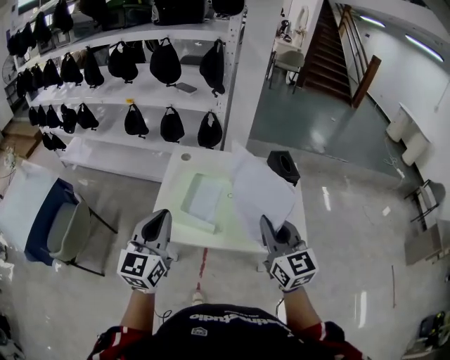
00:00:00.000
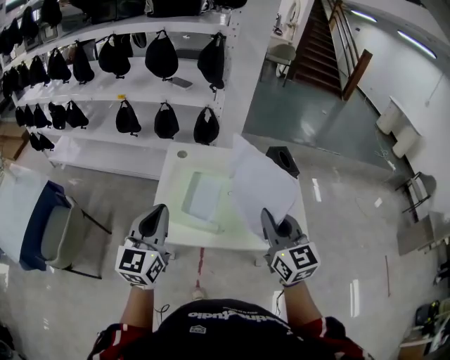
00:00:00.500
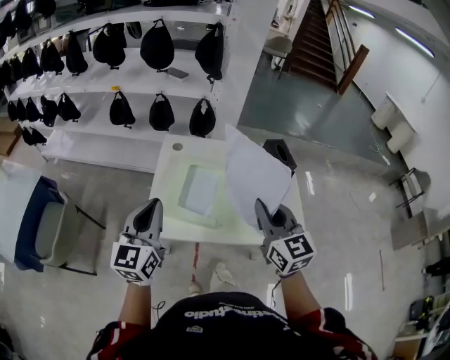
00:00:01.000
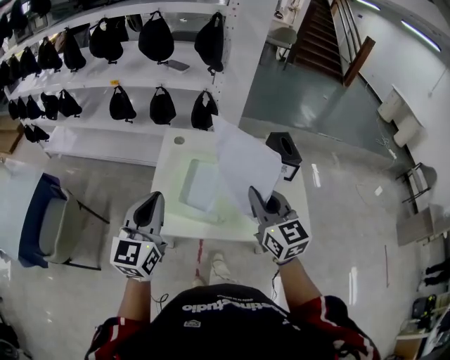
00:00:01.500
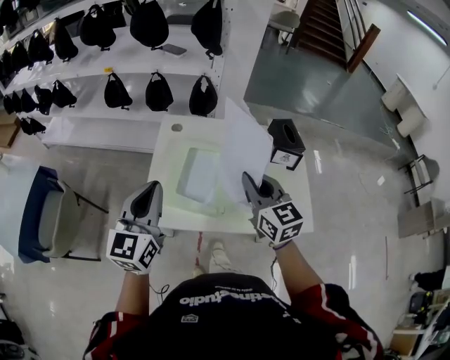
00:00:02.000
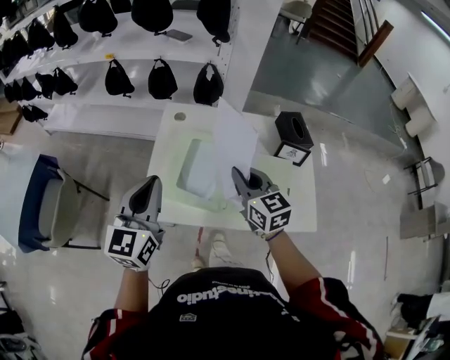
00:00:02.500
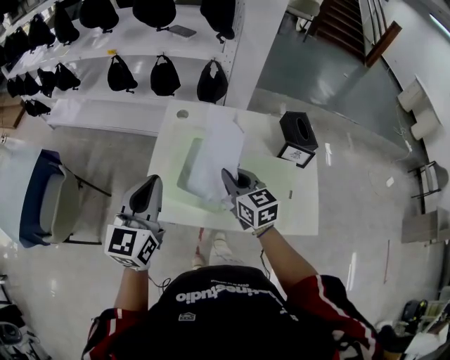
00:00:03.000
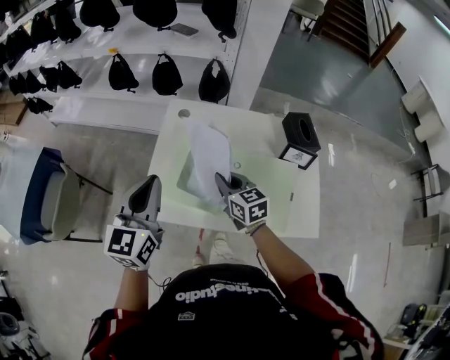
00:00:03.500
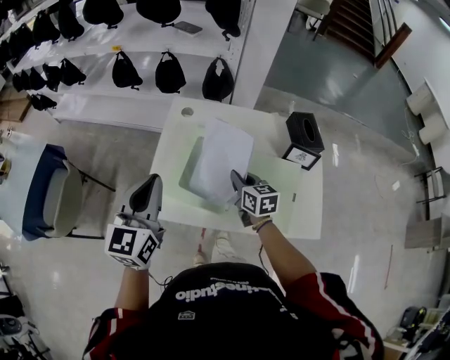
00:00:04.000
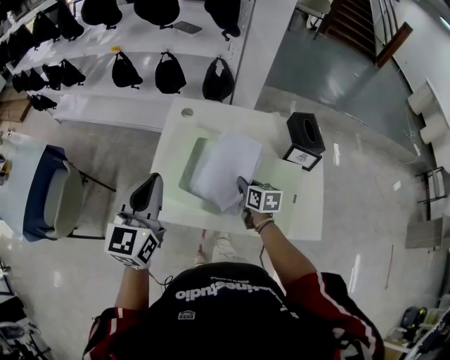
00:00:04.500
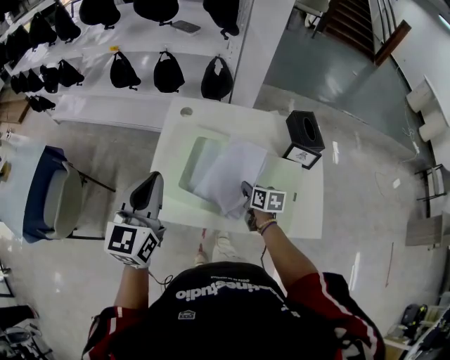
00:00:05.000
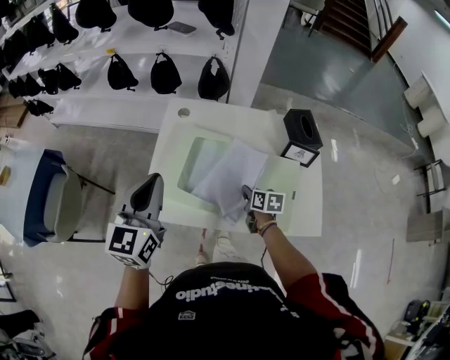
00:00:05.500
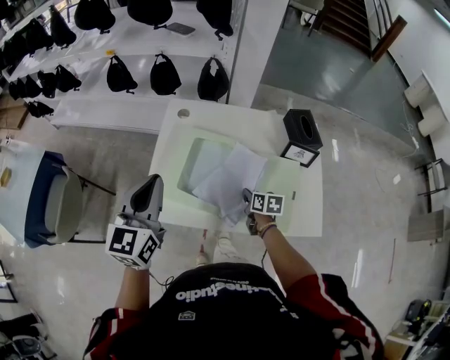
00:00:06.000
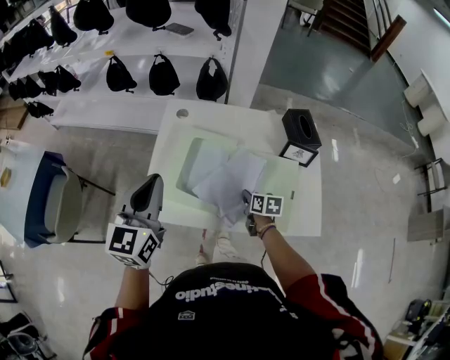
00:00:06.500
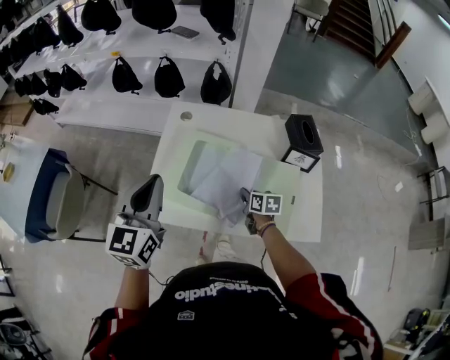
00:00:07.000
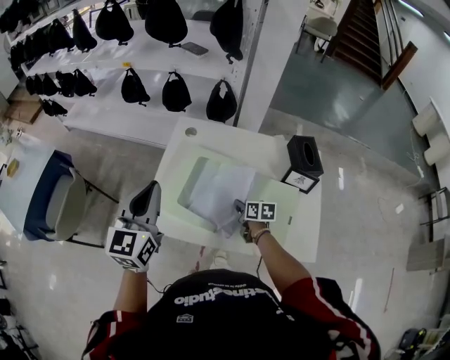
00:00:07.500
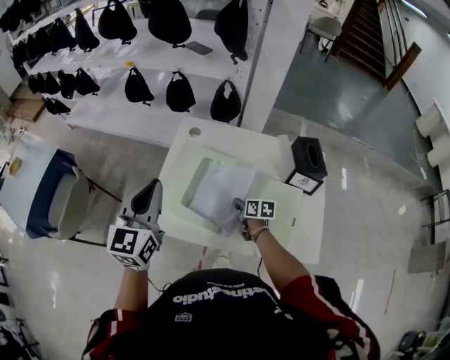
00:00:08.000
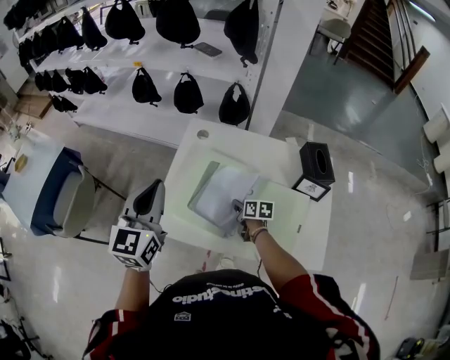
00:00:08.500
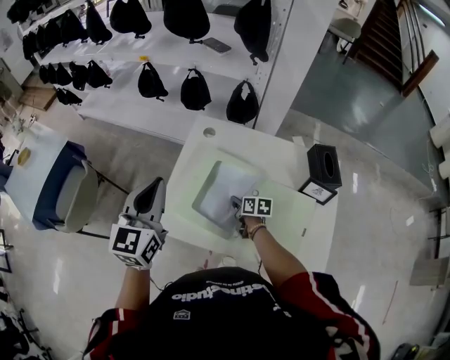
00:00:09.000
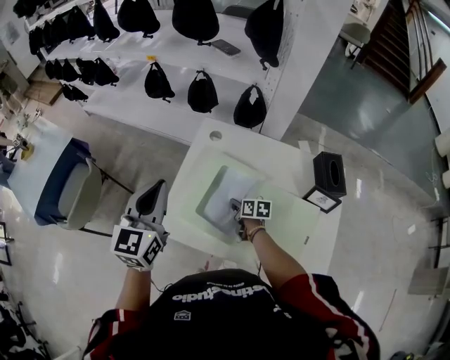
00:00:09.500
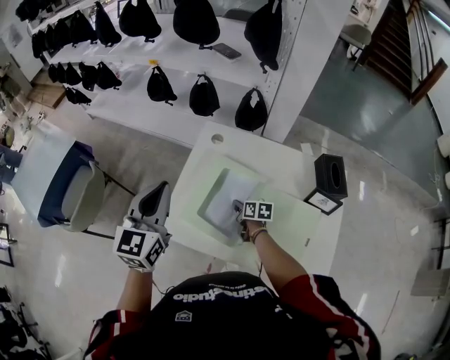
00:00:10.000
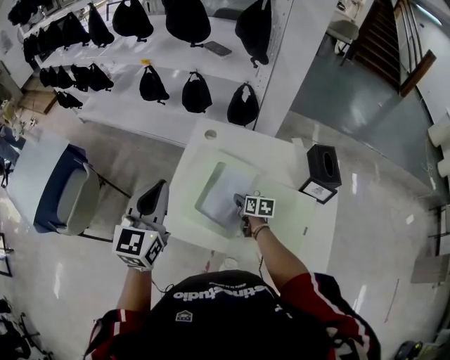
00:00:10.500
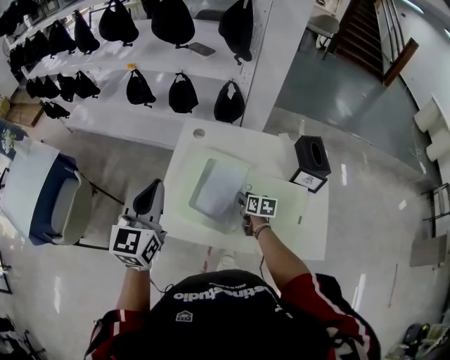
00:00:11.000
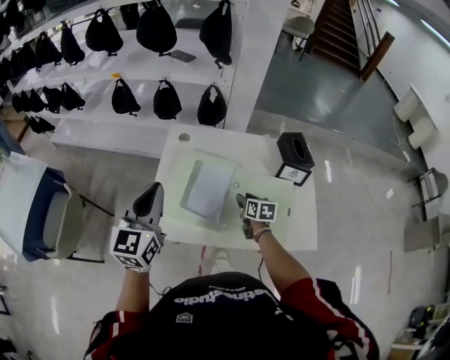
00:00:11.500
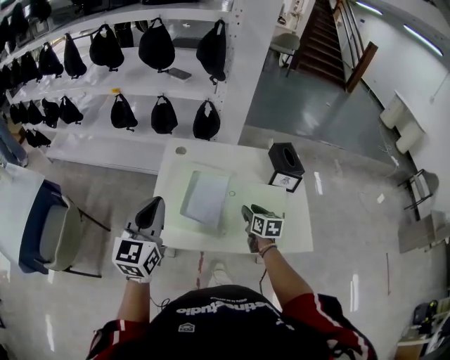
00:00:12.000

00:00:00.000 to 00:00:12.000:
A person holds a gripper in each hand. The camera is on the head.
00:00:00.000 to 00:00:02.000: The right gripper travels forward, downward and to the left by approximately 15 cm, while the left gripper shifts some 10 cm forward.
00:00:02.000 to 00:00:04.000: The right gripper goes about 20 cm downward and forward, and swivels about 30 degrees.
00:00:04.000 to 00:00:06.000: The right gripper is displaced downward and to the right by approximately 15 cm, and swivels some 30 degrees.
00:00:06.000 to 00:00:08.000: The right gripper heads forward, covering about 5 cm.
00:00:08.000 to 00:00:10.000: The right gripper moves forward and to the left, some 10 cm.
00:00:10.000 to 00:00:12.000: The left gripper changes place by approximately 10 cm; the right gripper moves some 20 cm, swivels some 30 degrees, and opens.

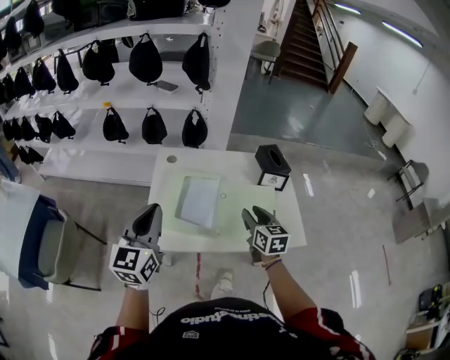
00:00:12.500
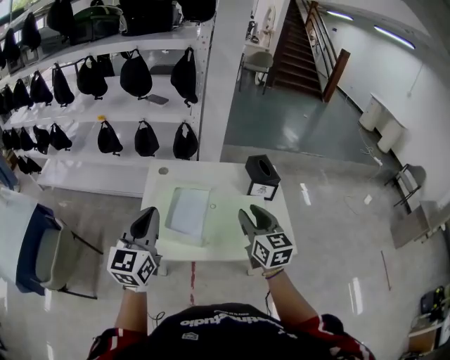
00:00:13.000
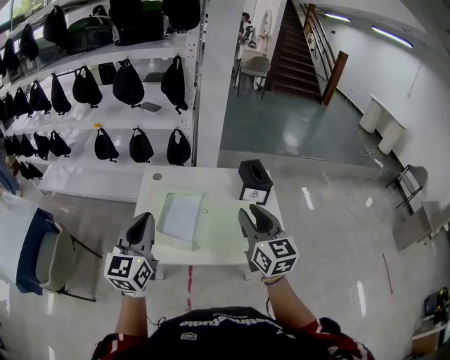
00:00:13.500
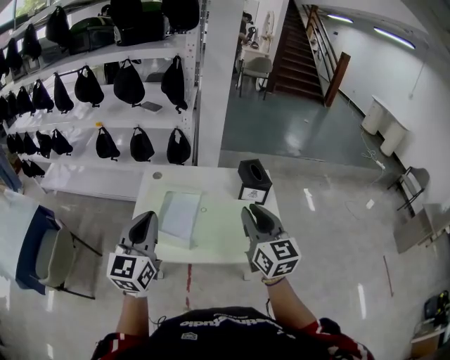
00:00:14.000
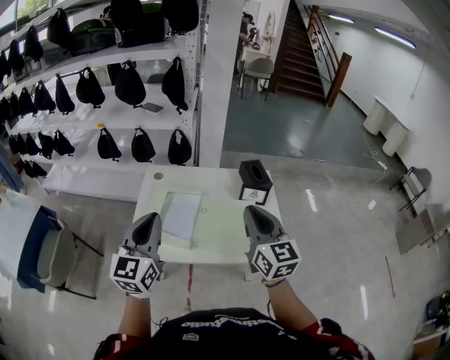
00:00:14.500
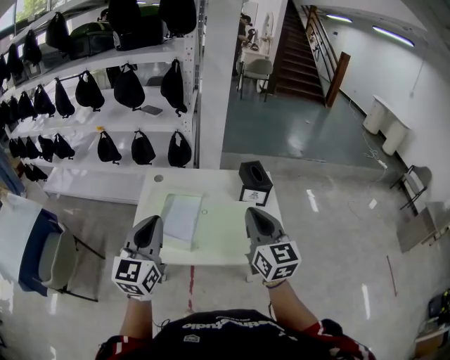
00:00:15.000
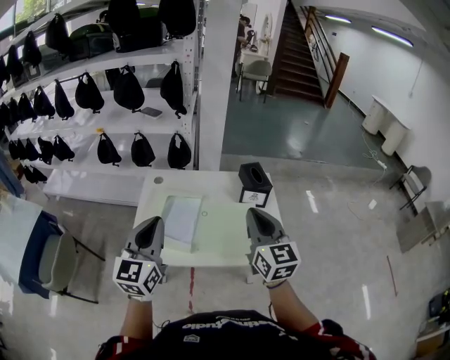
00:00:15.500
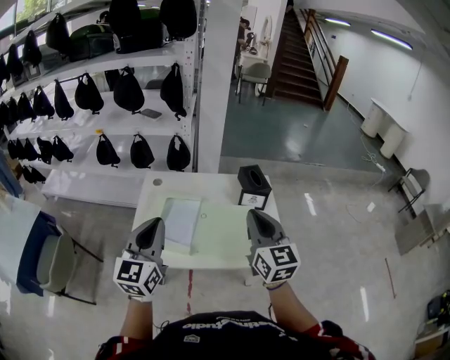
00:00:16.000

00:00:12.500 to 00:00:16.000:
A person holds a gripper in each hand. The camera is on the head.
00:00:12.500 to 00:00:14.500: The right gripper moves upward, approximately 20 cm, turns by roughly 20 degrees, and closes. Meanwhile the left gripper is displaced to the right and upward by roughly 10 cm.
00:00:14.500 to 00:00:16.000: Both grippers stay about where they are.

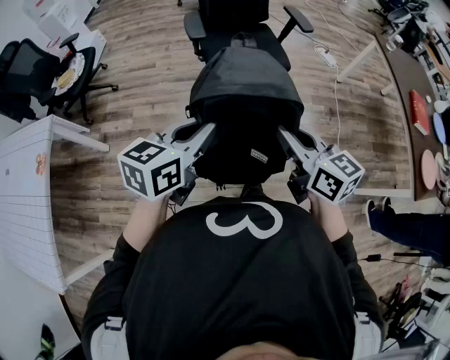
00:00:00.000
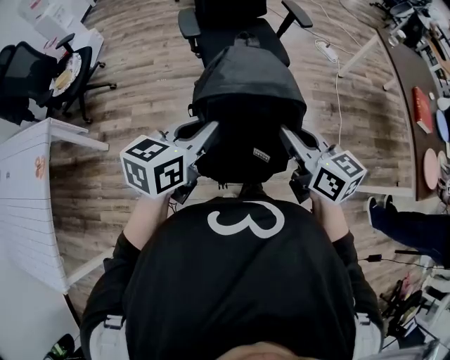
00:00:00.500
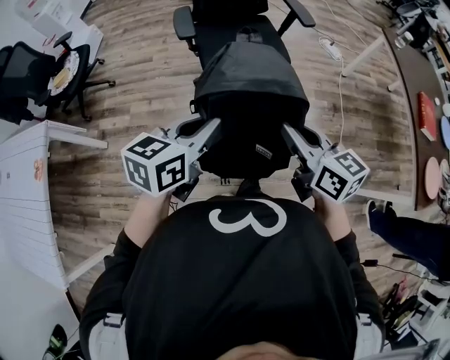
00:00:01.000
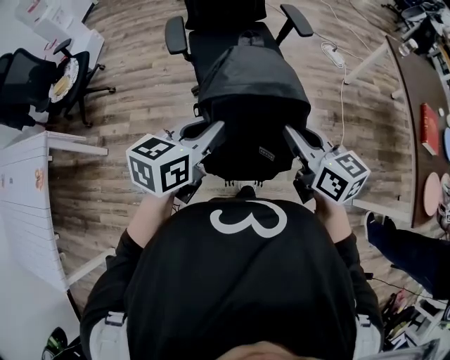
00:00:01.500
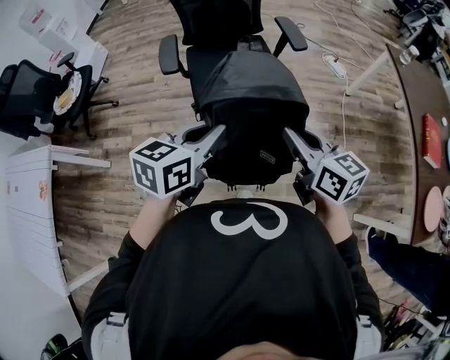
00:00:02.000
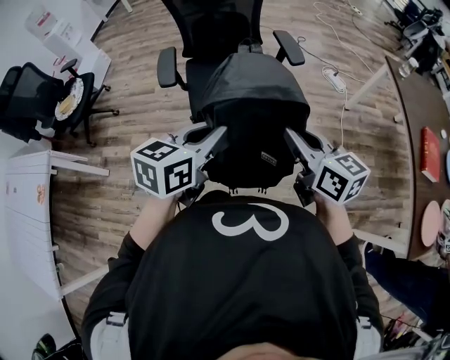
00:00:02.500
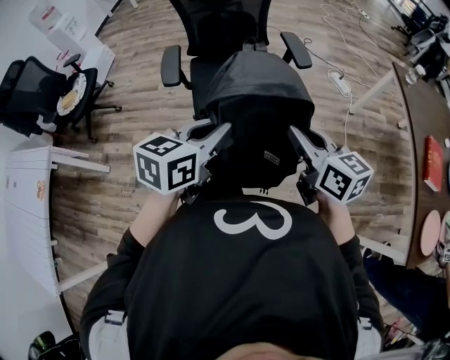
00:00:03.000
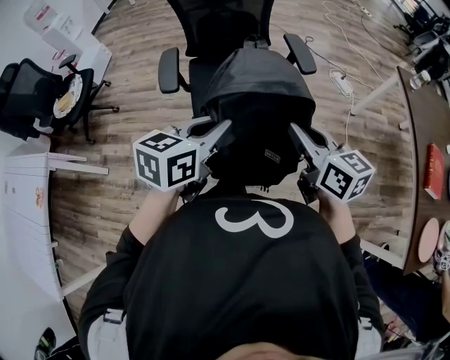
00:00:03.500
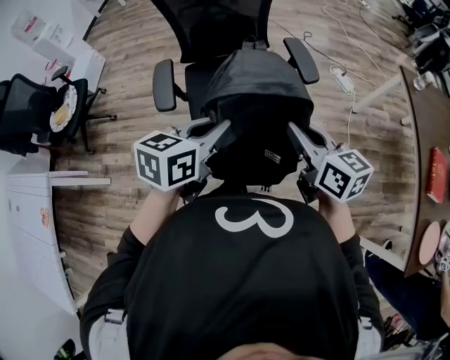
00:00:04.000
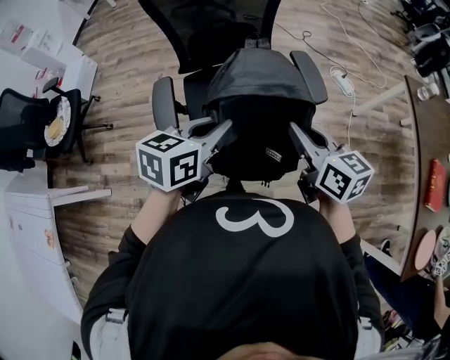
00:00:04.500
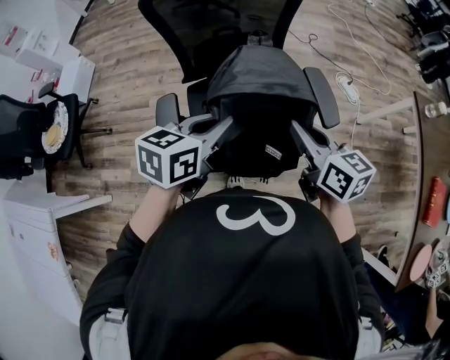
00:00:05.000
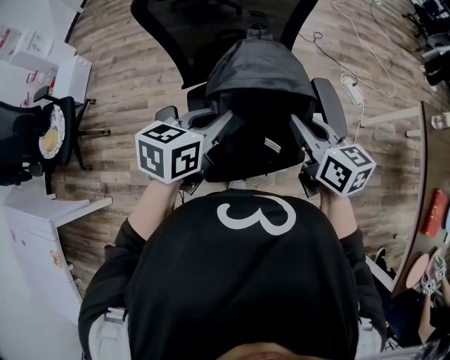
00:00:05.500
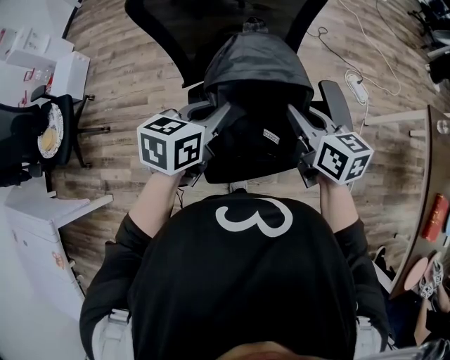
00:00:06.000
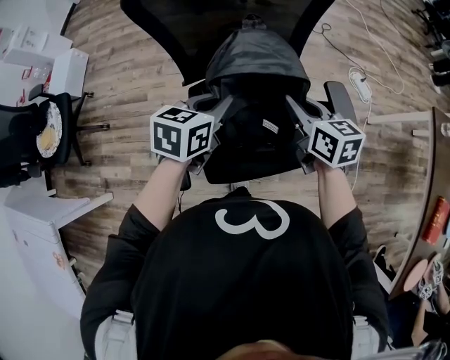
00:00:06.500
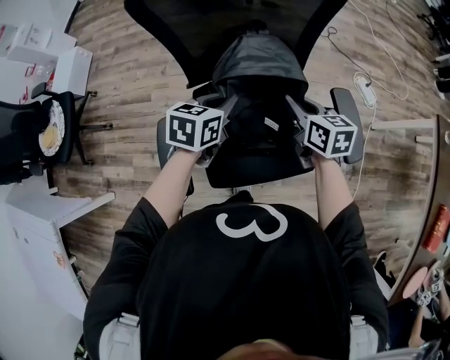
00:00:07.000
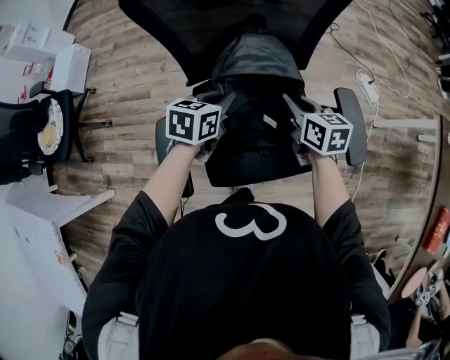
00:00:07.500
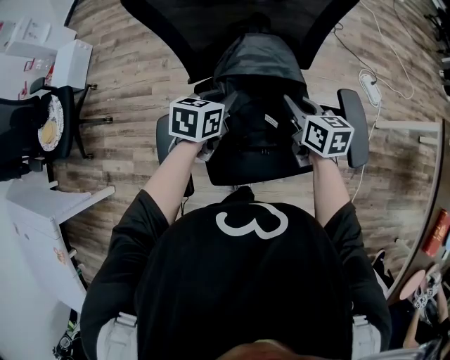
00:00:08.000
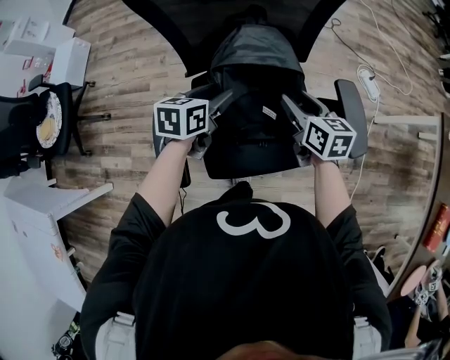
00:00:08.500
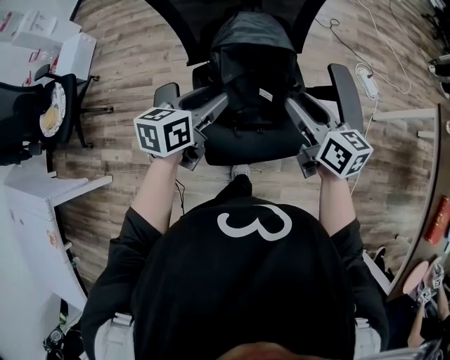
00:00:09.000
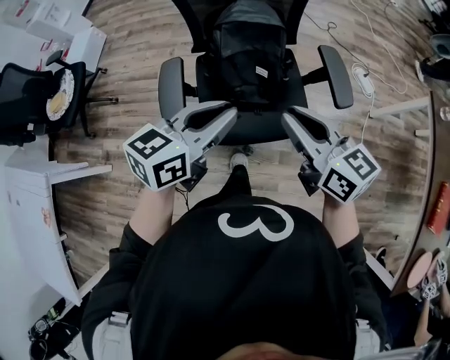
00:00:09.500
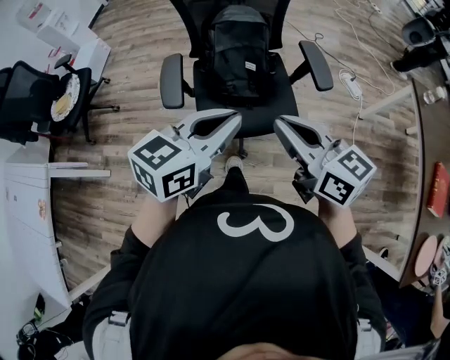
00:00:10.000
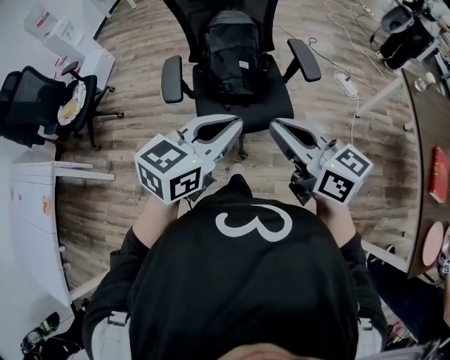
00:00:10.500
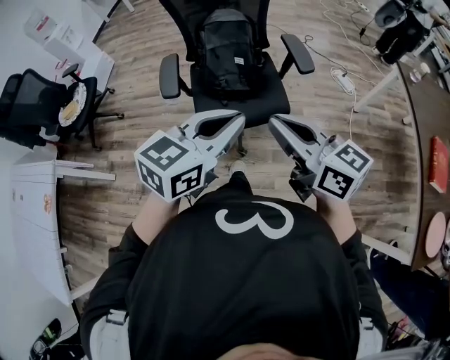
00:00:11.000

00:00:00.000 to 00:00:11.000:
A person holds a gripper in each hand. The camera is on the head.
00:00:00.000 to 00:00:02.000: Both grippers move forward and to the right, some 25 cm.
00:00:02.000 to 00:00:03.500: Both grippers move forward, about 10 cm.
00:00:03.500 to 00:00:05.500: The two grippers go some 40 cm forward.
00:00:05.500 to 00:00:07.500: Both grippers move downward and forward, roughly 20 cm.
00:00:07.500 to 00:00:09.000: The grippers both shift backward and upward by approximately 15 cm. The left gripper opens up, while the right gripper opens up.
00:00:09.000 to 00:00:11.000: Both grippers are carried backward, some 40 cm. The two grippers go some 20 cm upward. The left gripper turns by about 30 degrees, and closes up, while the right gripper changes its angle by about 20 degrees, and closes its fingers.
